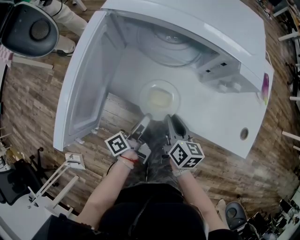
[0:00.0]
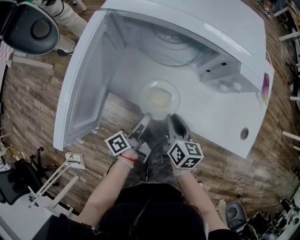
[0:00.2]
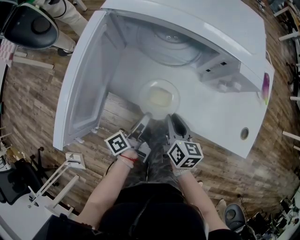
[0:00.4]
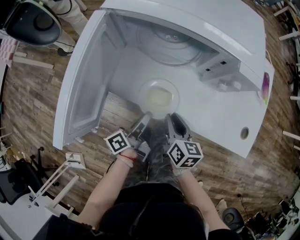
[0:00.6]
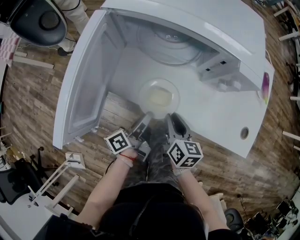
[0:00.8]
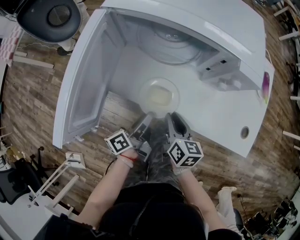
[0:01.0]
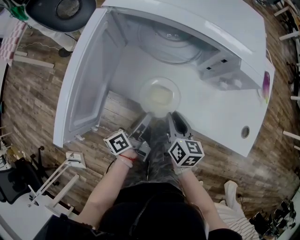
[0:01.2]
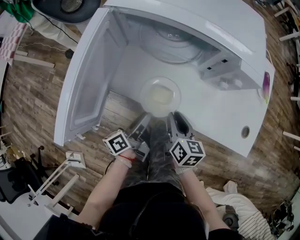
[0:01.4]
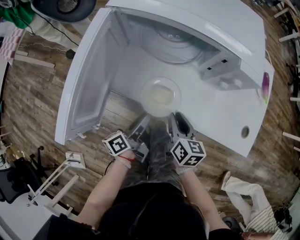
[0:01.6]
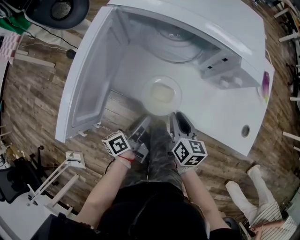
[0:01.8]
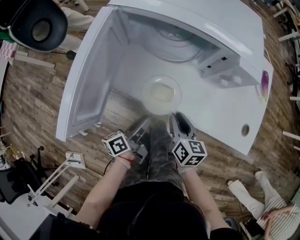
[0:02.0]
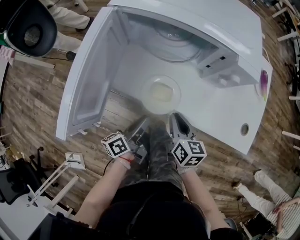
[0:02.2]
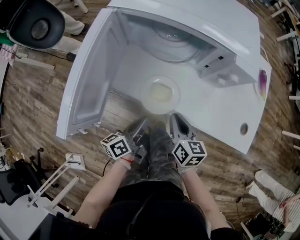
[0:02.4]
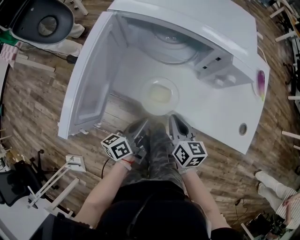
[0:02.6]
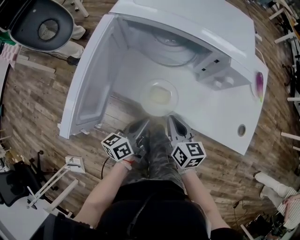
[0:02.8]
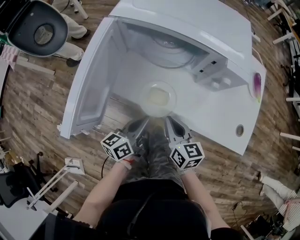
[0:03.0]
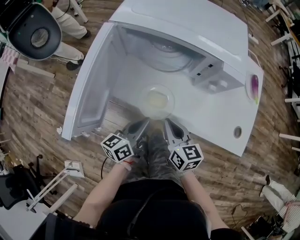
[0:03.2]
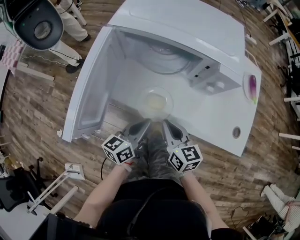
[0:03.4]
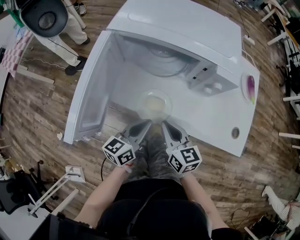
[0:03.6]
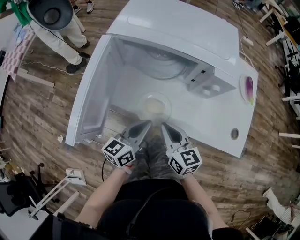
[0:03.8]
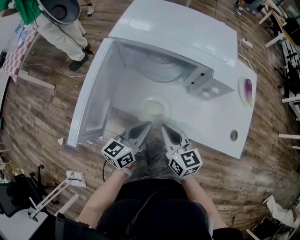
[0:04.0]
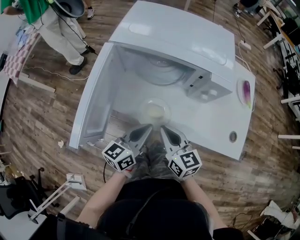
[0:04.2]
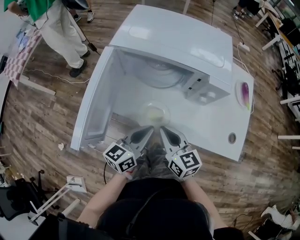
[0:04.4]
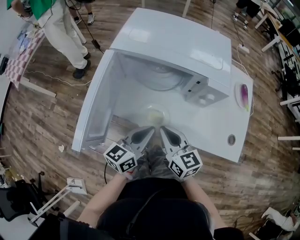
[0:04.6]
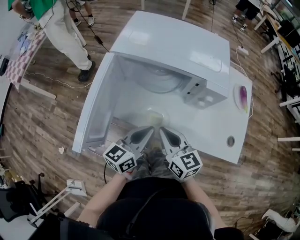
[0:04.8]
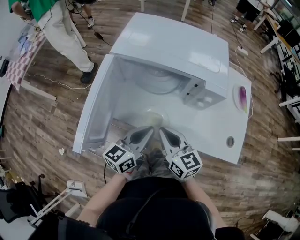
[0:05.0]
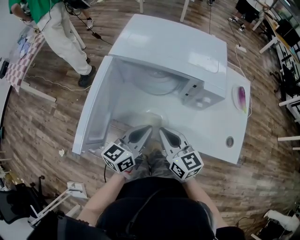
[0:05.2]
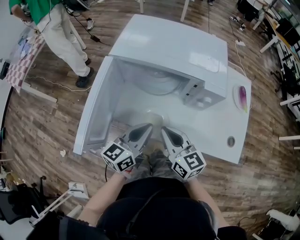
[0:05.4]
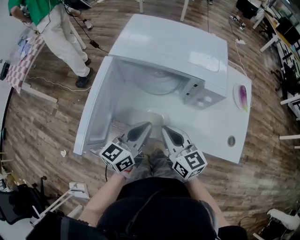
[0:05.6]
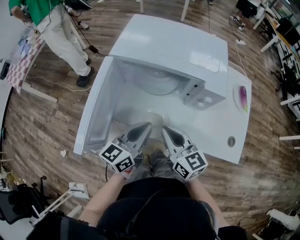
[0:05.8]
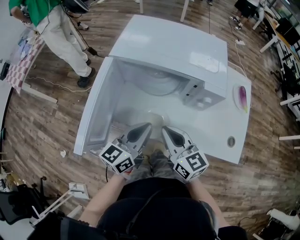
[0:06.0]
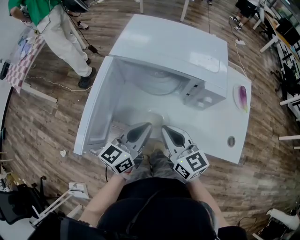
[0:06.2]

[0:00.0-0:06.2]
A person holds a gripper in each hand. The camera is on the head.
0:00.0 to 0:01.6: The left gripper opens up.
0:01.6 to 0:03.2: Both grippers travel together upward, about 5 cm. The left gripper changes its angle by some 30 degrees, and closes its fingers.
0:03.2 to 0:04.6: The grippers both shift upward by about 5 cm.
0:04.6 to 0:06.2: The left gripper moves about 5 cm.

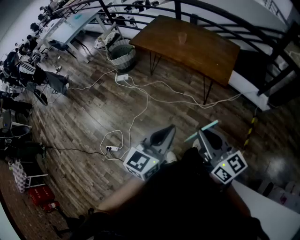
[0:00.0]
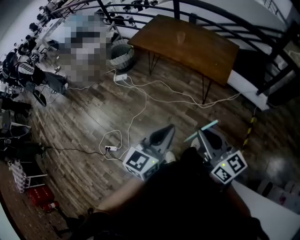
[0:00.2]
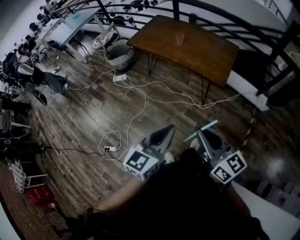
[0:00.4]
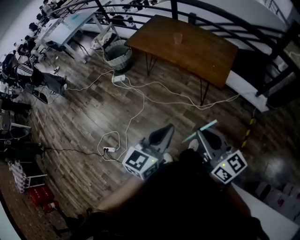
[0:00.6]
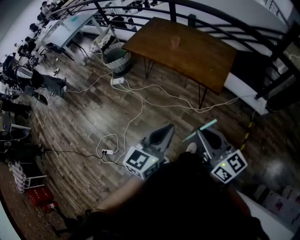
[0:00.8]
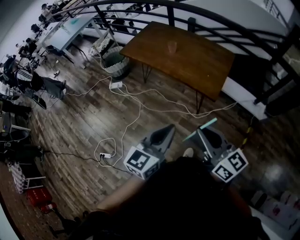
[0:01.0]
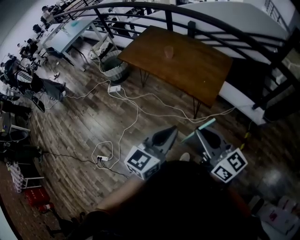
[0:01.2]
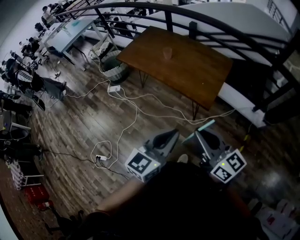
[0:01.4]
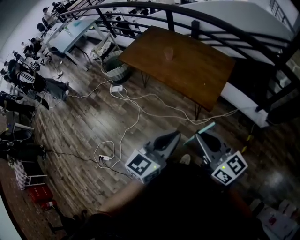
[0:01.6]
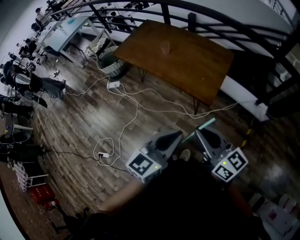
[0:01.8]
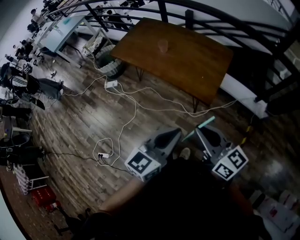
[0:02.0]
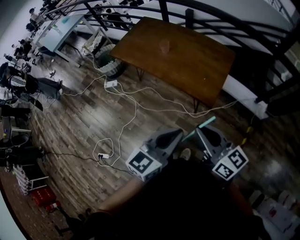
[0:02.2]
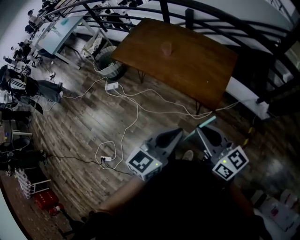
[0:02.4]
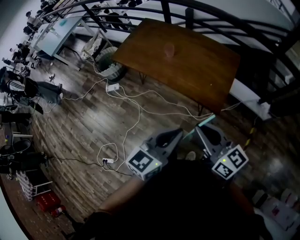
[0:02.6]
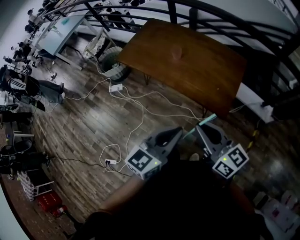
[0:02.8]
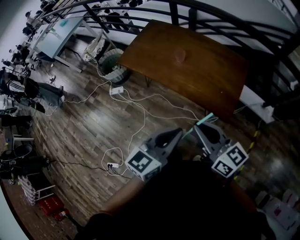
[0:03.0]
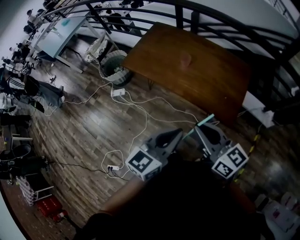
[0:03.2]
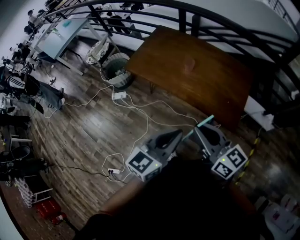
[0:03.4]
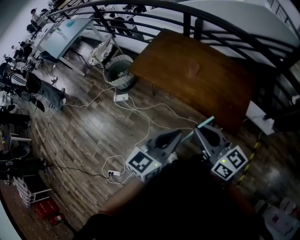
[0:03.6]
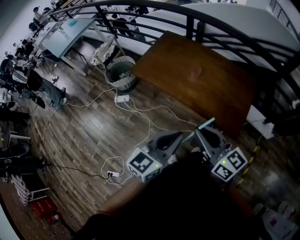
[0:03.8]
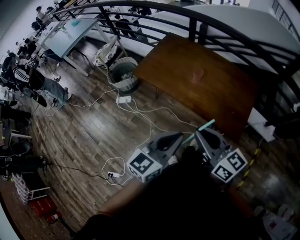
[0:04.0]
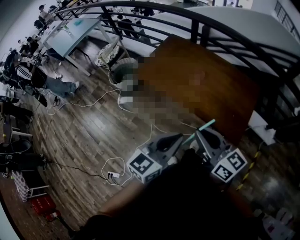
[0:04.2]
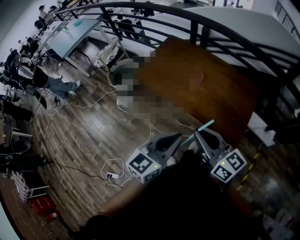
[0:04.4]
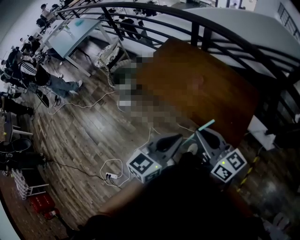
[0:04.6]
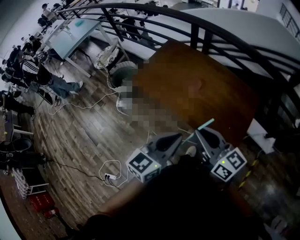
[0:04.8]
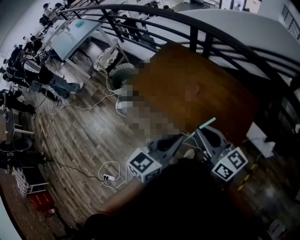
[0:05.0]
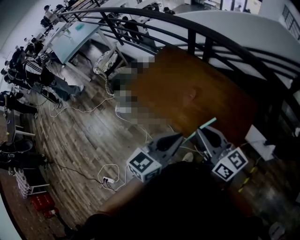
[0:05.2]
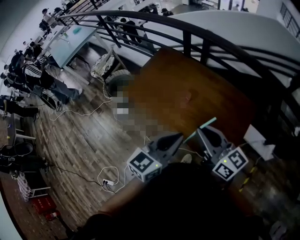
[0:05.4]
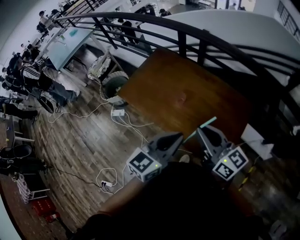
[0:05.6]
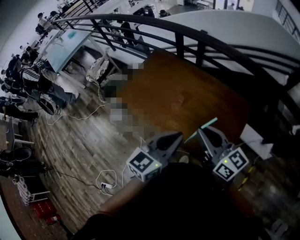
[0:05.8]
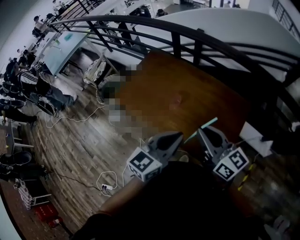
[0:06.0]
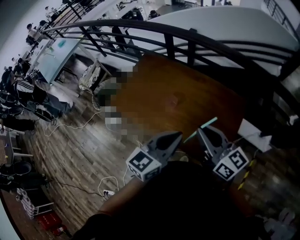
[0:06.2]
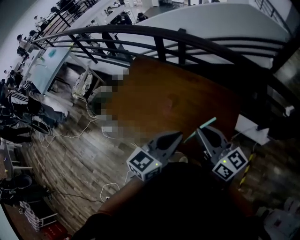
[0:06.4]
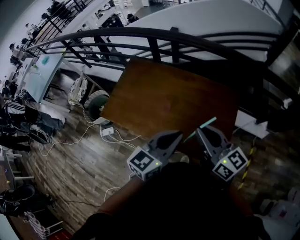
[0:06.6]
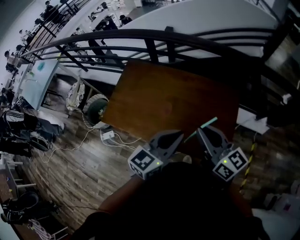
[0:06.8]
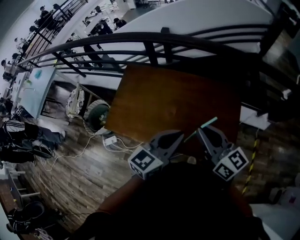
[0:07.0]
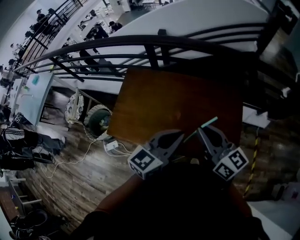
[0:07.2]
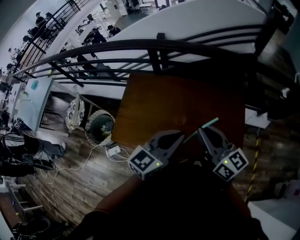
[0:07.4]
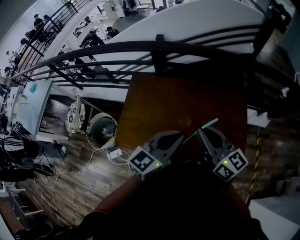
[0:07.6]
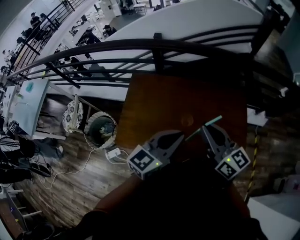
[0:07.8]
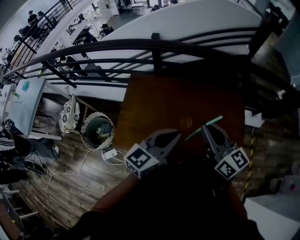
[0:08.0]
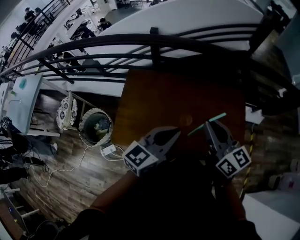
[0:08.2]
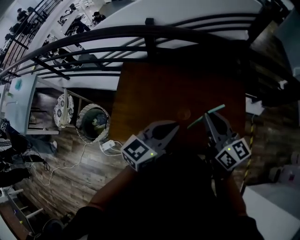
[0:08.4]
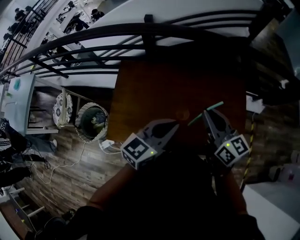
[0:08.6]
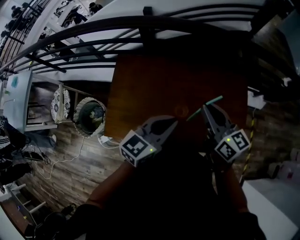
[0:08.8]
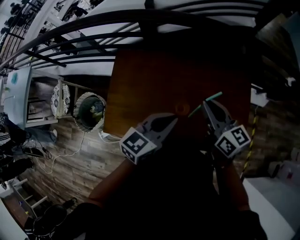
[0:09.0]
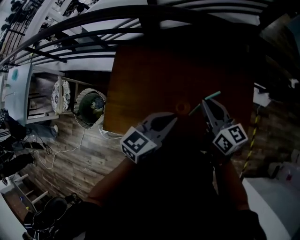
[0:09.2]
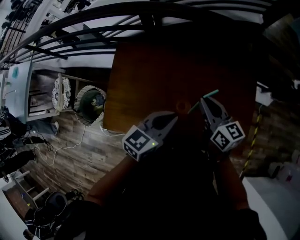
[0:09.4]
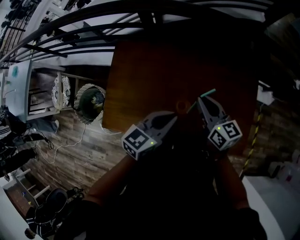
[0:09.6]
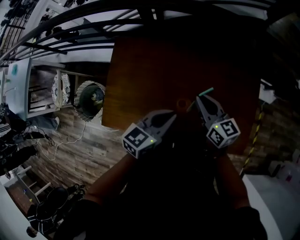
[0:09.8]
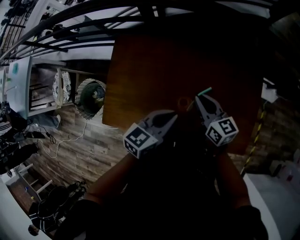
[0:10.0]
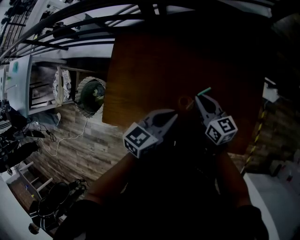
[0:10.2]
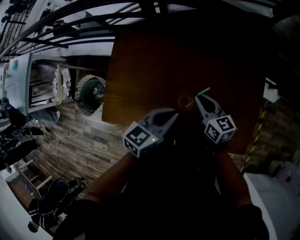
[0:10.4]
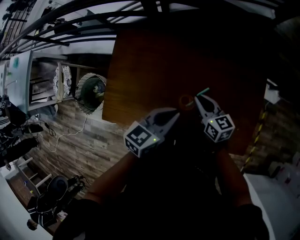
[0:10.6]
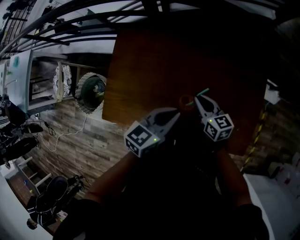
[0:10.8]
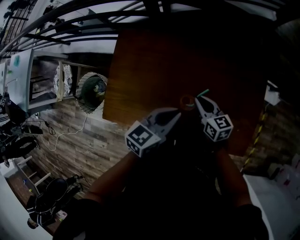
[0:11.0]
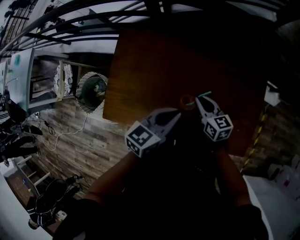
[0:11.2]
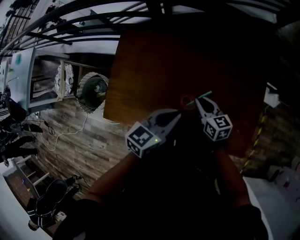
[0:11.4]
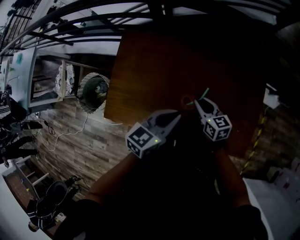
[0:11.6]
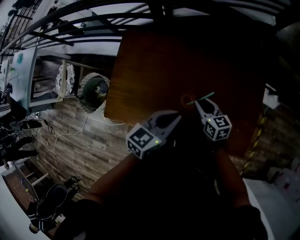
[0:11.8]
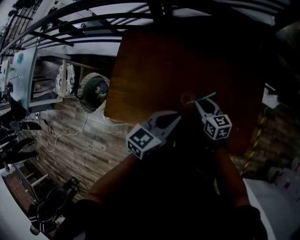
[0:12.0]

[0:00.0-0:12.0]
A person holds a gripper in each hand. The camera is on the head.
0:00.0 to 0:01.6: The grippers both shift to the right and forward by about 25 cm.
0:01.6 to 0:03.0: Both grippers travel together forward and to the left, approximately 25 cm.
0:03.0 to 0:04.4: The grippers both shift to the left and forward by approximately 10 cm.
0:04.4 to 0:06.0: Both grippers move forward and to the right, about 25 cm.
0:06.0 to 0:07.6: The left gripper shifts by some 20 cm, and turns by some 30 degrees. Meanwhile the right gripper shifts by about 20 cm, and swivels some 30 degrees.
0:07.6 to 0:09.0: The right gripper heads forward and downward, covering about 15 cm, while the left gripper shifts about 15 cm downward and forward.
0:09.0 to 0:10.4: The left gripper goes roughly 10 cm downward, while the right gripper travels downward by some 20 cm.
0:10.4 to 0:12.0: The right gripper ends up about 5 cm from where it was, and opens its fingers.

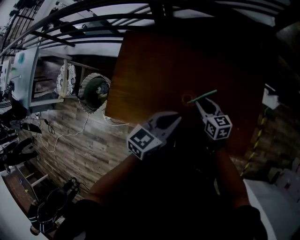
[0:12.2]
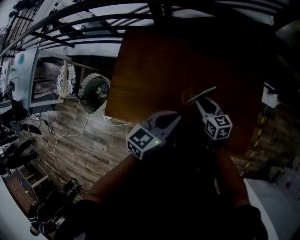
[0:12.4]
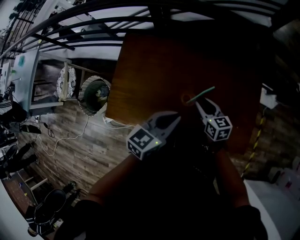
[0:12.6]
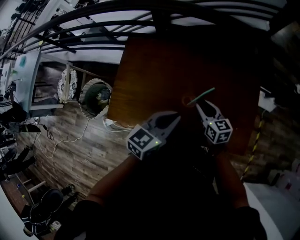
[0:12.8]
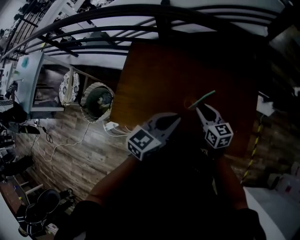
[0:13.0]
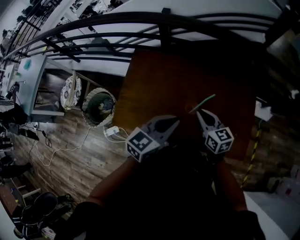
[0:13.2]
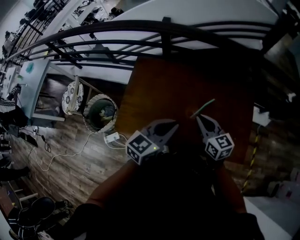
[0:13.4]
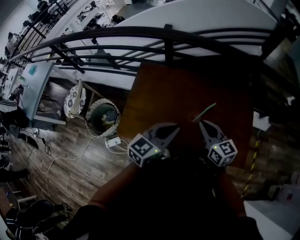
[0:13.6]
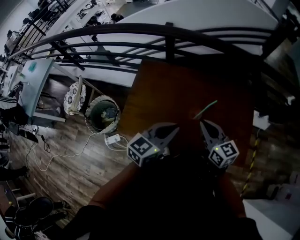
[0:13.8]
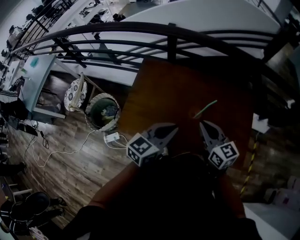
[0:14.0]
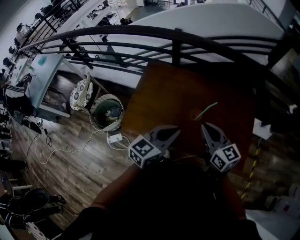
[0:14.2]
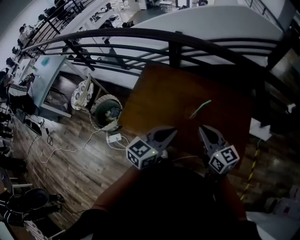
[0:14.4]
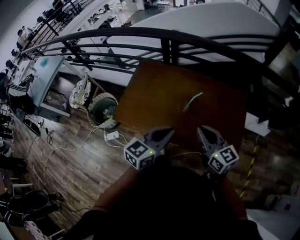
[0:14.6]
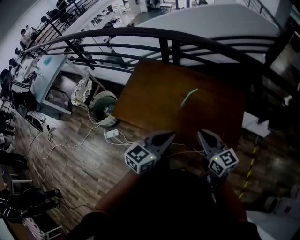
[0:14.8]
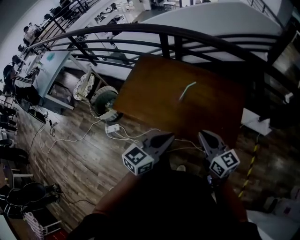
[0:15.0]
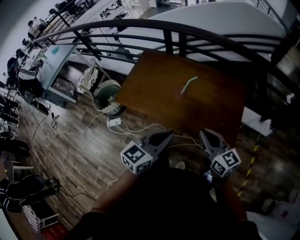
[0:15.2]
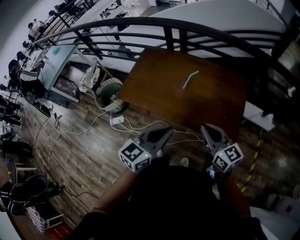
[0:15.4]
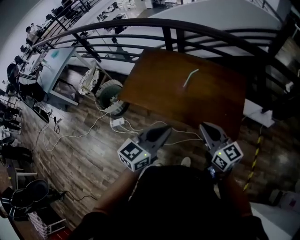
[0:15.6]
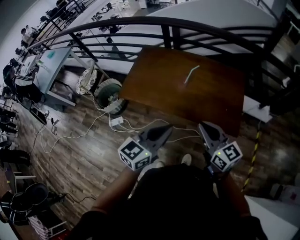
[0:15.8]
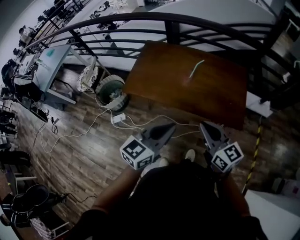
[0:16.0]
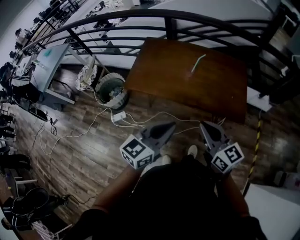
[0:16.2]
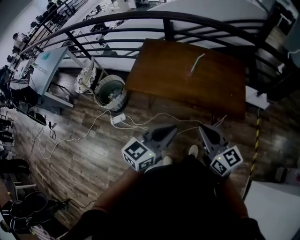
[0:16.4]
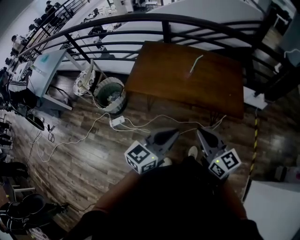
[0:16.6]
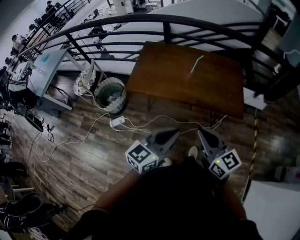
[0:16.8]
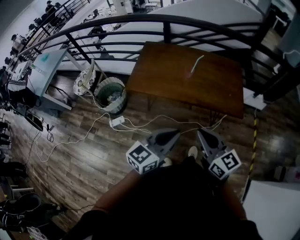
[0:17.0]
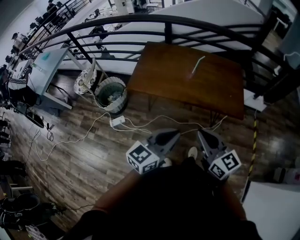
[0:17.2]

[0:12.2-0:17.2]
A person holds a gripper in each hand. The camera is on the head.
0:12.2 to 0:13.8: The right gripper goes approximately 25 cm upward and backward, turns by roughly 20 degrees, and closes up. The left gripper shifts roughly 15 cm upward, backward and to the left.
0:13.8 to 0:15.6: Both grippers travel together backward and to the right, some 30 cm.
0:15.6 to 0:17.2: The right gripper is displaced to the left and backward by roughly 20 cm. Meanwhile the left gripper travels backward and to the left by approximately 15 cm.
